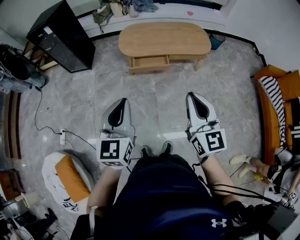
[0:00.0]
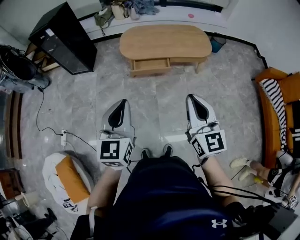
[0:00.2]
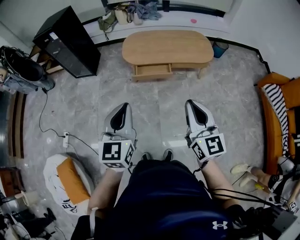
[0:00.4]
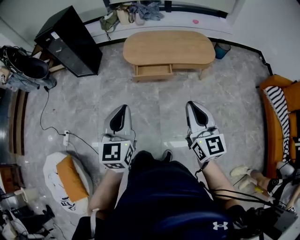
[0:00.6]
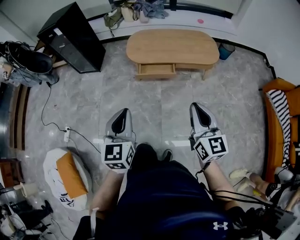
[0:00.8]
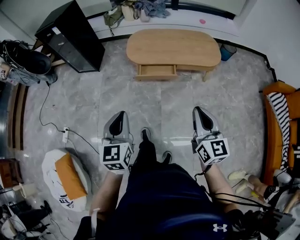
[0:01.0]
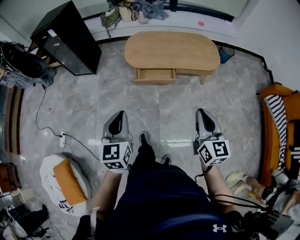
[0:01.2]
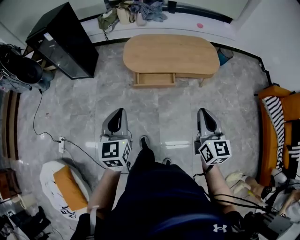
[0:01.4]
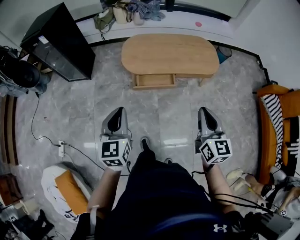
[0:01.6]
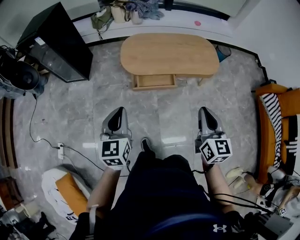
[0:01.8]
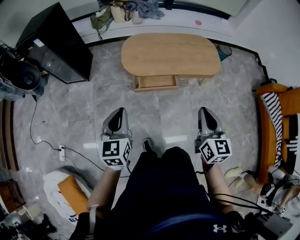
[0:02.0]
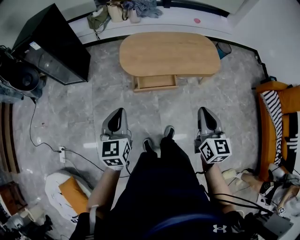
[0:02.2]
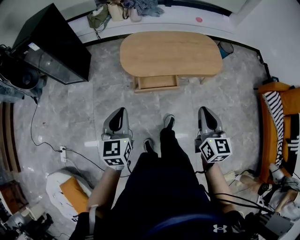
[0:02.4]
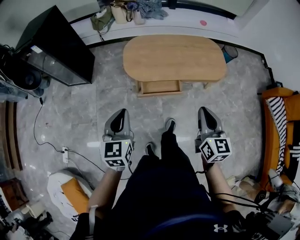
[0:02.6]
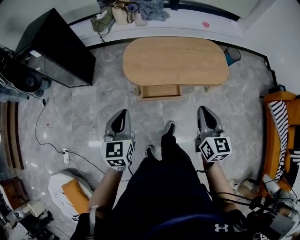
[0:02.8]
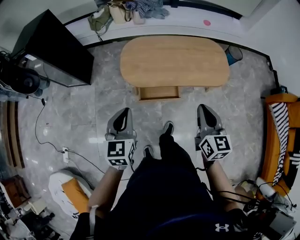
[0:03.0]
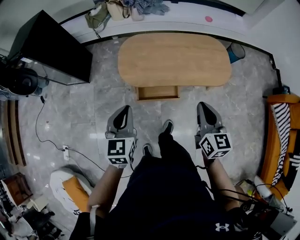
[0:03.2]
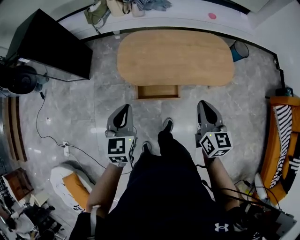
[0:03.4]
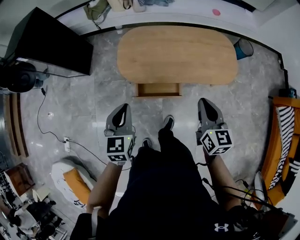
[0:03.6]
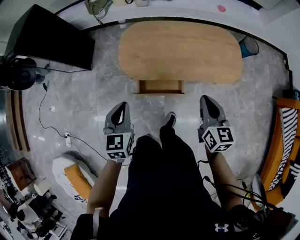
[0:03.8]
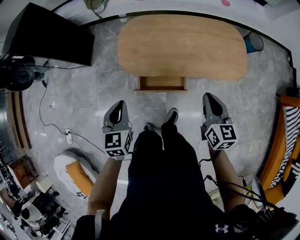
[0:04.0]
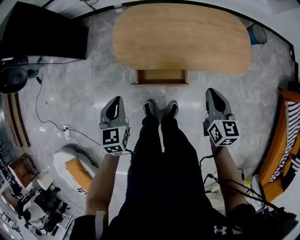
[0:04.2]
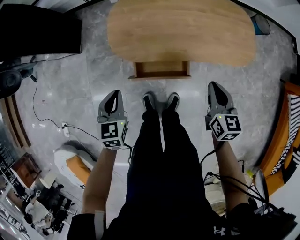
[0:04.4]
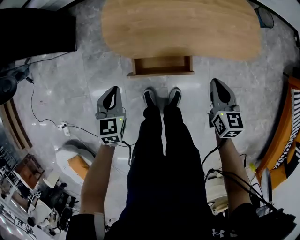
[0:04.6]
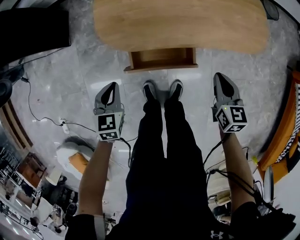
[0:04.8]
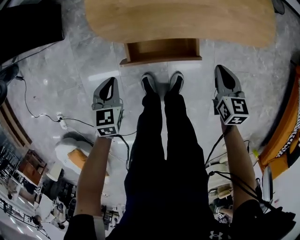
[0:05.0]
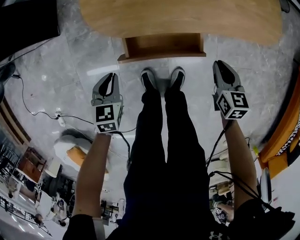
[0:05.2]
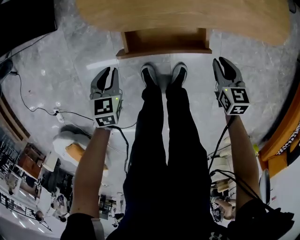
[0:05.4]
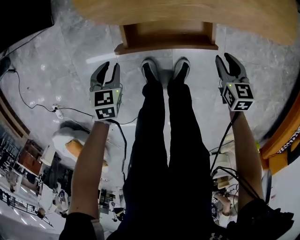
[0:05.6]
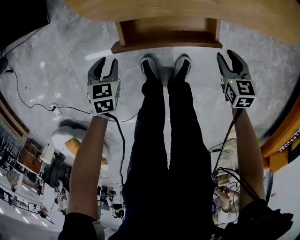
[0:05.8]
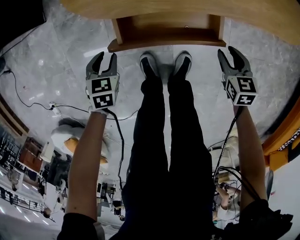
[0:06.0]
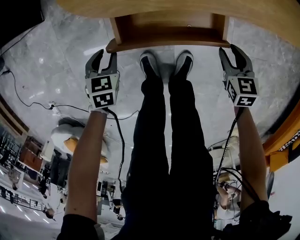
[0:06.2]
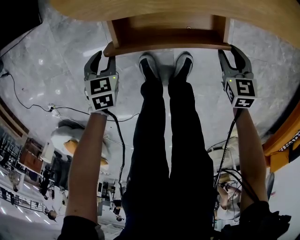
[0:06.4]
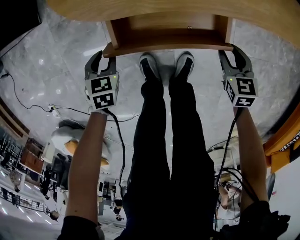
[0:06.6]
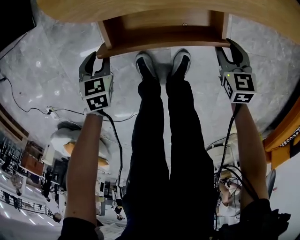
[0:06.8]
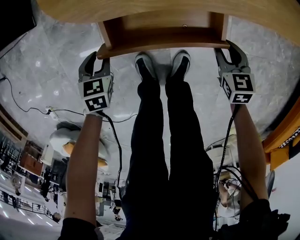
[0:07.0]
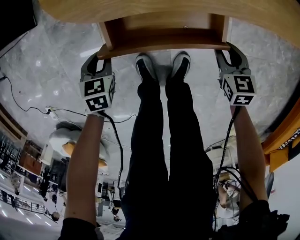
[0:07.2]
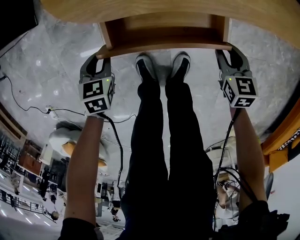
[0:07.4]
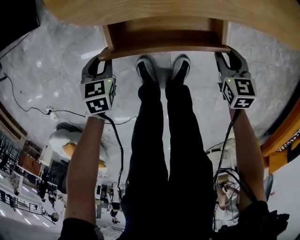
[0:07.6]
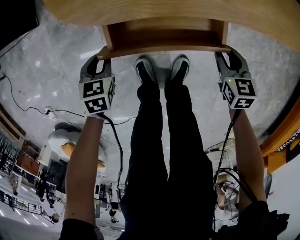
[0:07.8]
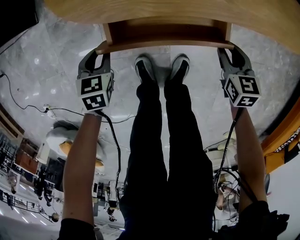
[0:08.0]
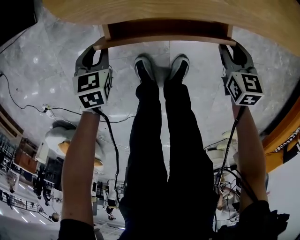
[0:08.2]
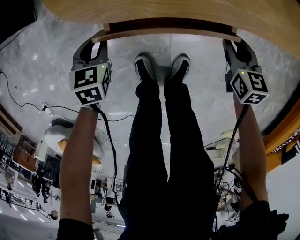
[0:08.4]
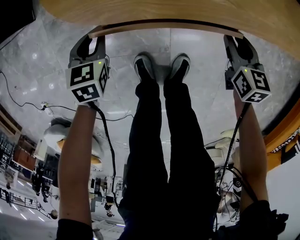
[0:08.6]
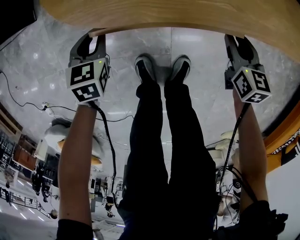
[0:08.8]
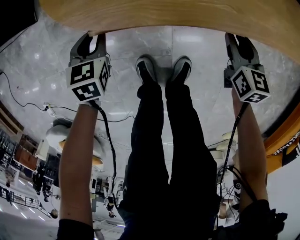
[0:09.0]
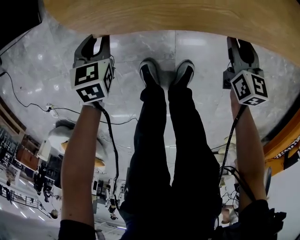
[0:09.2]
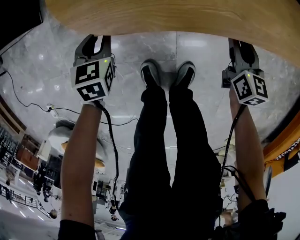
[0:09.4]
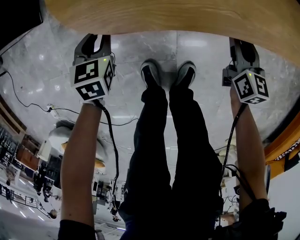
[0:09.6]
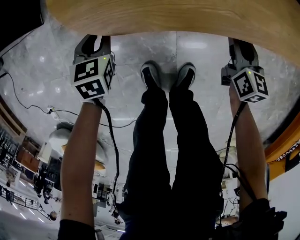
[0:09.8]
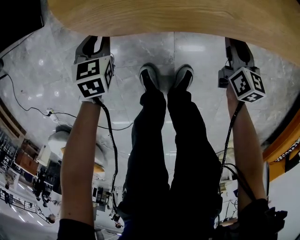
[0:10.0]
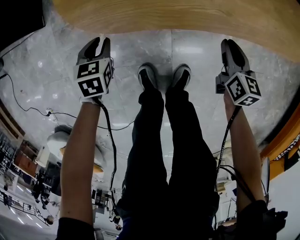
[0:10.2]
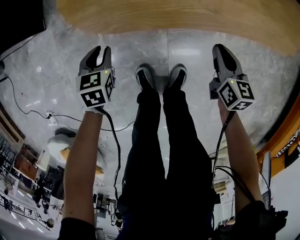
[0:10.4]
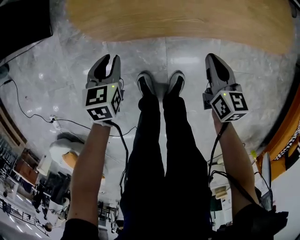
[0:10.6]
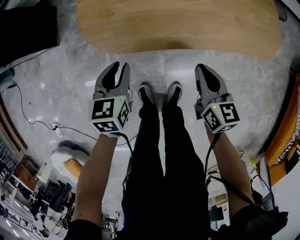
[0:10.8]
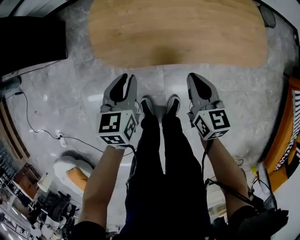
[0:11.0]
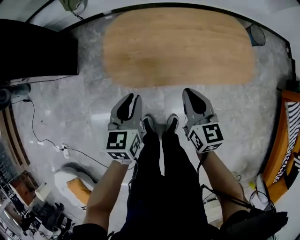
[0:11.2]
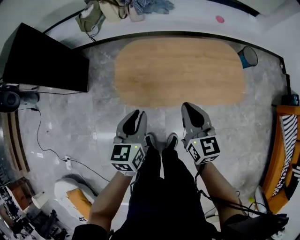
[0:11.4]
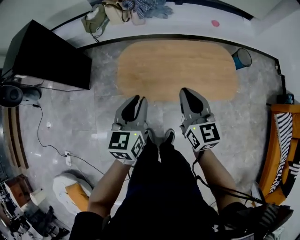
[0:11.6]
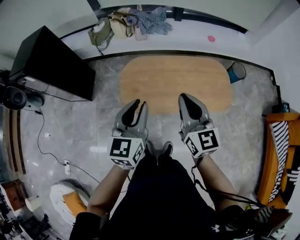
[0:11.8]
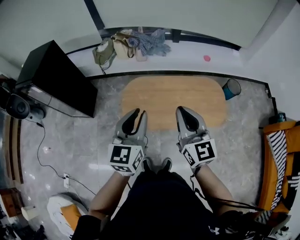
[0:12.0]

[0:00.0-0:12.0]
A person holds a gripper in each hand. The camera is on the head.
0:00.0 to 0:01.6: The two grippers go approximately 20 cm forward.
0:01.6 to 0:03.0: Both grippers move forward, roughly 20 cm.
0:03.0 to 0:04.4: The grippers both shift downward and forward by approximately 25 cm.
0:04.4 to 0:06.0: Both grippers move downward, some 35 cm. The left gripper changes its angle by some 30 degrees, and opens up; the right gripper swivels approximately 30 degrees, and opens up.
0:06.0 to 0:07.6: The grippers make only small movements.
0:07.6 to 0:09.0: Both grippers travel together forward, some 10 cm.
0:09.0 to 0:10.4: The left gripper shifts by approximately 5 cm. The right gripper shifts some 5 cm upward.
0:10.4 to 0:12.0: The two grippers go approximately 70 cm upward. The left gripper tilts its fingers about 50 degrees upward; the right gripper tilts its fingers roughly 40 degrees upward.

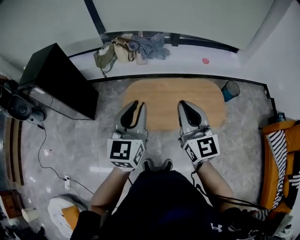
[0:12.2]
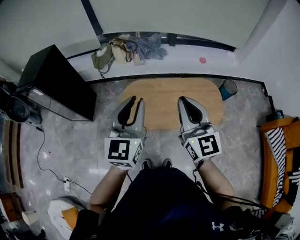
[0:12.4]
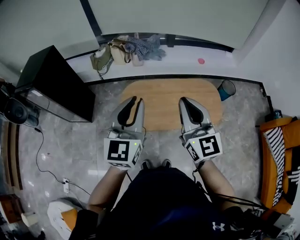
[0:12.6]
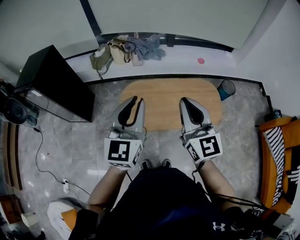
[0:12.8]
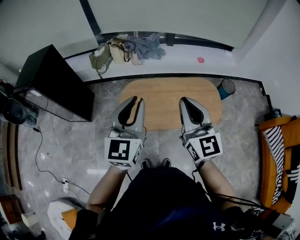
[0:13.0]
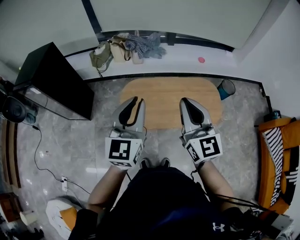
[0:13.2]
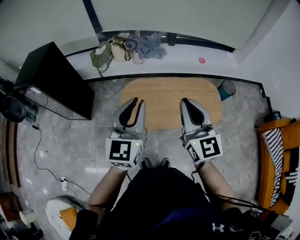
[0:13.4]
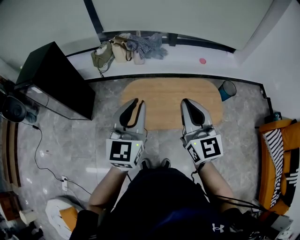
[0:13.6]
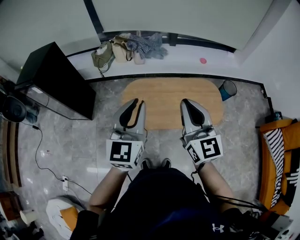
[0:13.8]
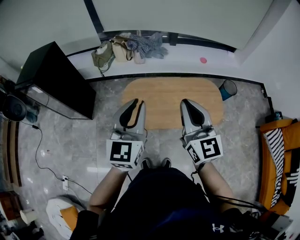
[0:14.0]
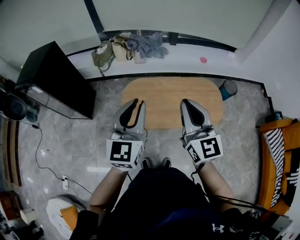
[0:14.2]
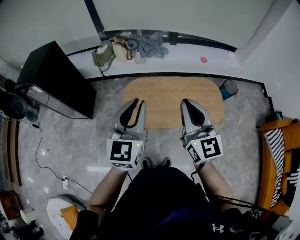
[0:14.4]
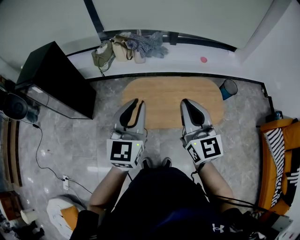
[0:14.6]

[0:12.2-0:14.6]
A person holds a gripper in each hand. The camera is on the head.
0:12.2 to 0:13.4: The grippers stay close to where they were, moving slightly.
0:13.4 to 0:14.6: Both grippers stay put.

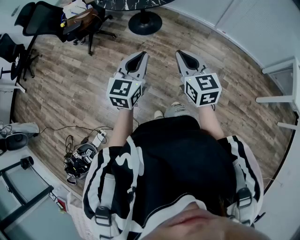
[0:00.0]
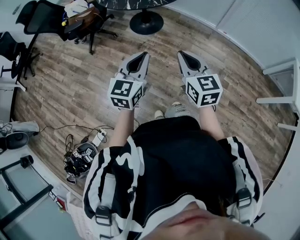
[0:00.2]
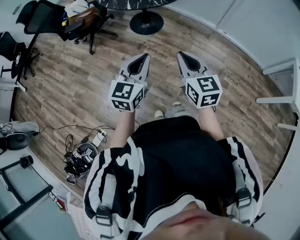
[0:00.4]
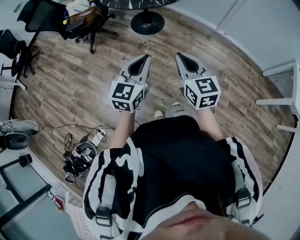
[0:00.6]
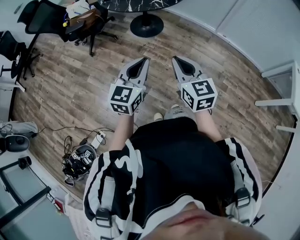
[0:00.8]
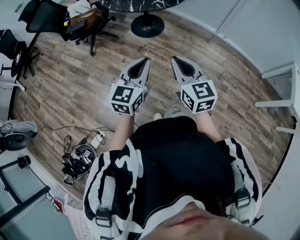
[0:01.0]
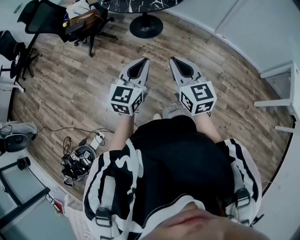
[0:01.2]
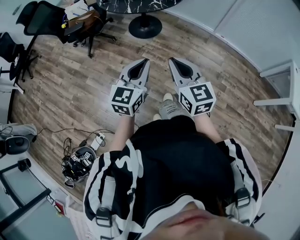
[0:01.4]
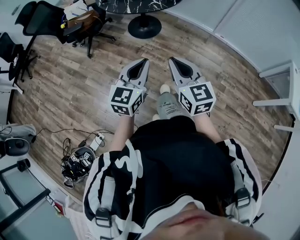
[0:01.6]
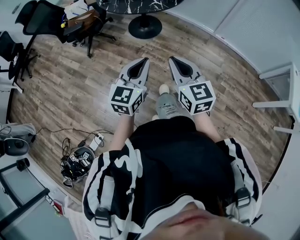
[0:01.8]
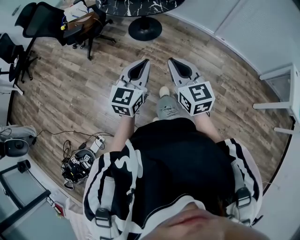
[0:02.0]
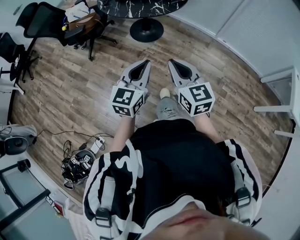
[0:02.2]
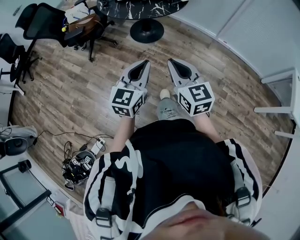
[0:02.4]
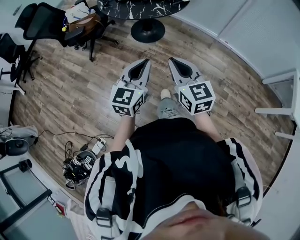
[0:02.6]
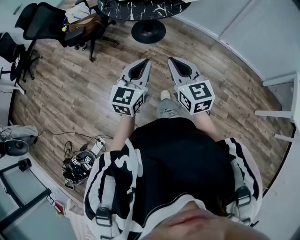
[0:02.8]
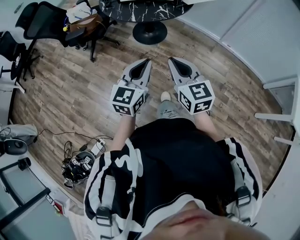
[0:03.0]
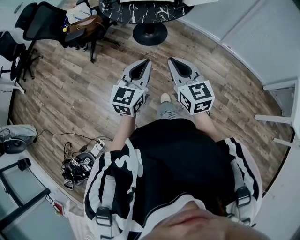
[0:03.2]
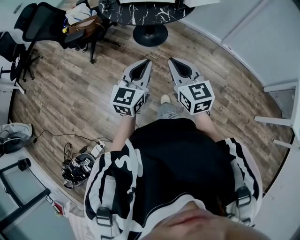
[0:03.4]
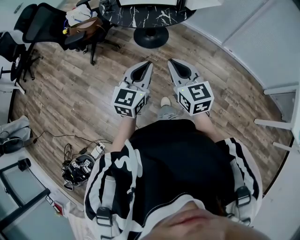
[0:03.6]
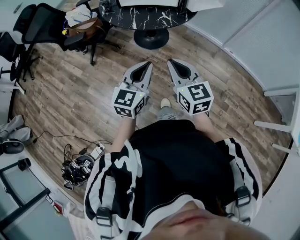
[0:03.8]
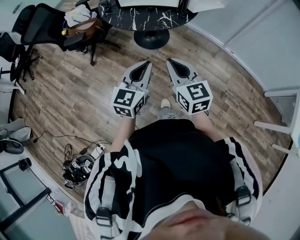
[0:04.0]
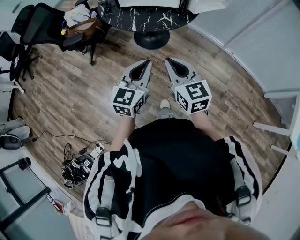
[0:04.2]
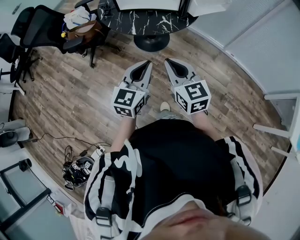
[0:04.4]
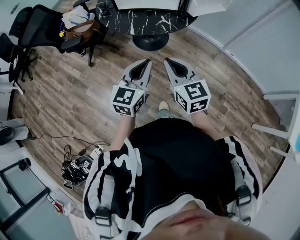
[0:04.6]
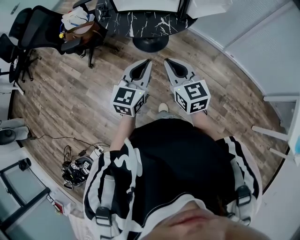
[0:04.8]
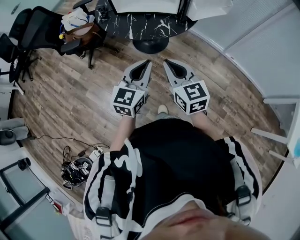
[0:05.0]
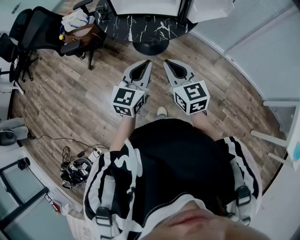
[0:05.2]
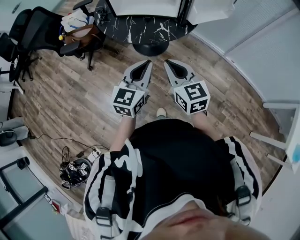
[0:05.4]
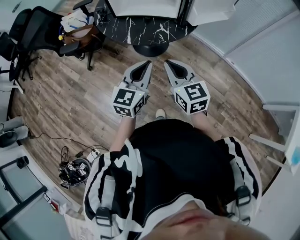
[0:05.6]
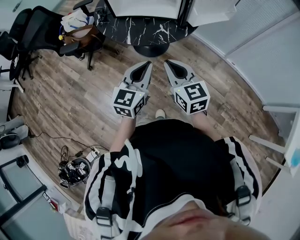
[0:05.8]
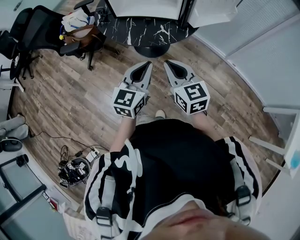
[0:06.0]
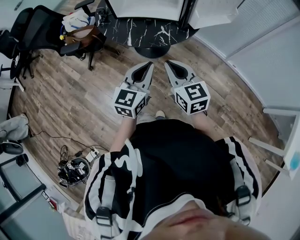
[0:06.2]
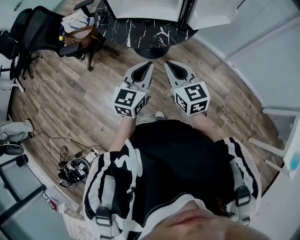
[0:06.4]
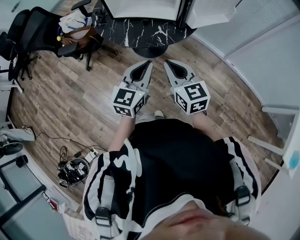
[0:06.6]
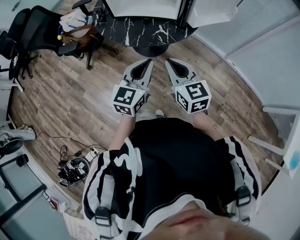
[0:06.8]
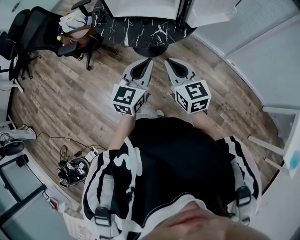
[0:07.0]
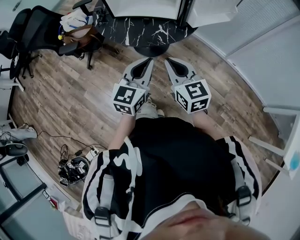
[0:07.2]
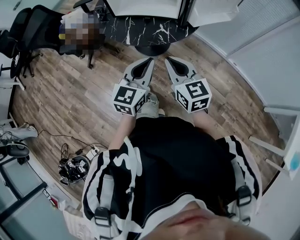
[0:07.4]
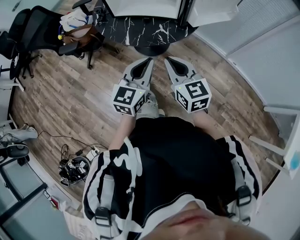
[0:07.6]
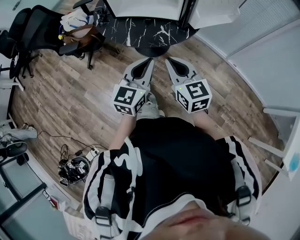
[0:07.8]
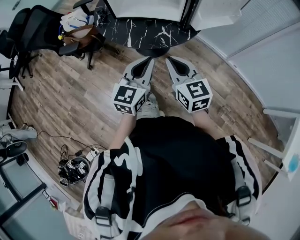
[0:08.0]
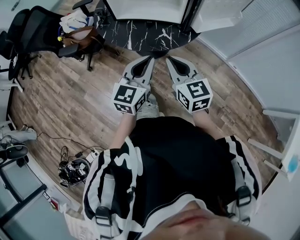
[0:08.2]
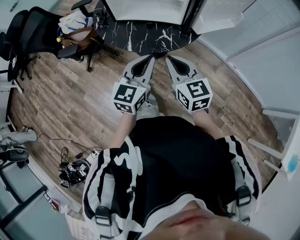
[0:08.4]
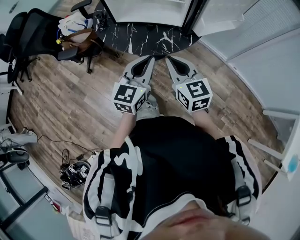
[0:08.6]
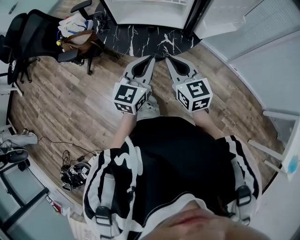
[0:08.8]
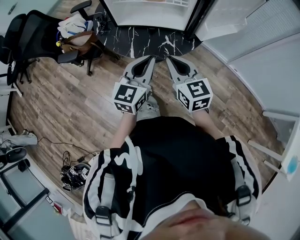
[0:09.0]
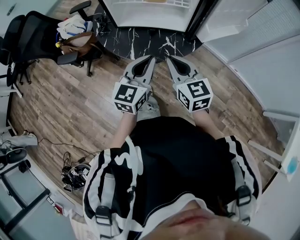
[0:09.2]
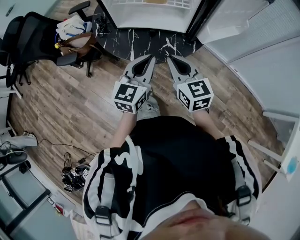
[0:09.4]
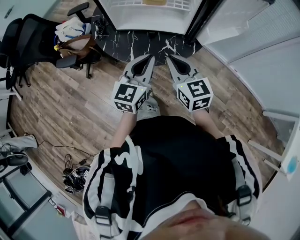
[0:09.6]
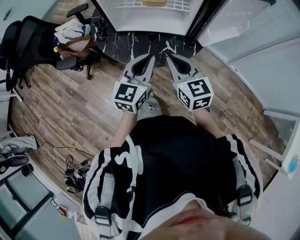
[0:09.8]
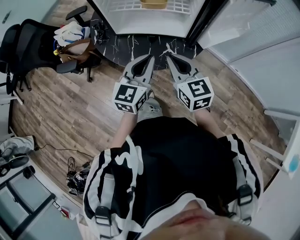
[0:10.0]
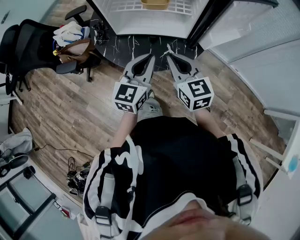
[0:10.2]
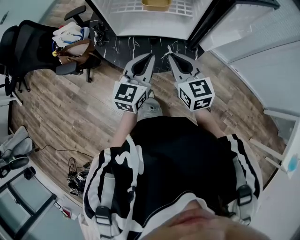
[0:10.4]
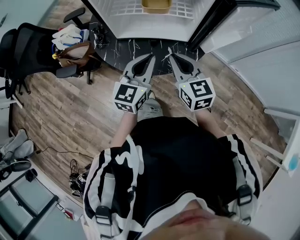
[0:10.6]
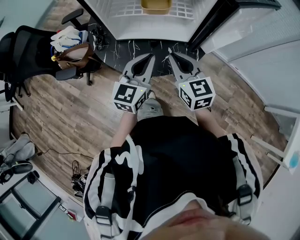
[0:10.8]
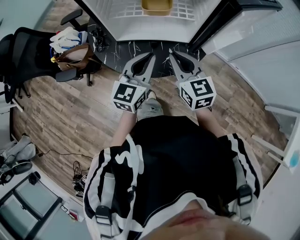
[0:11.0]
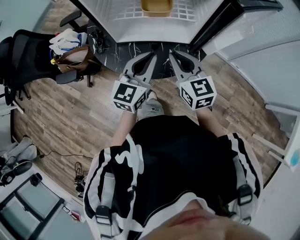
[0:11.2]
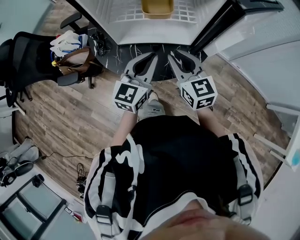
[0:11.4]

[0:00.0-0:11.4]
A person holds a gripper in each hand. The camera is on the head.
0:00.0 to 0:01.4: The right gripper moves some 5 cm.
0:01.4 to 0:02.8: Both grippers move forward, about 10 cm.
0:02.8 to 0:04.2: Both grippers travel together forward, approximately 15 cm.
0:04.2 to 0:05.6: The two grippers go roughly 10 cm forward.
0:05.6 to 0:07.2: The grippers make only small movements.
0:07.2 to 0:08.6: The grippers both shift forward by approximately 10 cm.
0:08.6 to 0:10.0: The two grippers go approximately 10 cm forward.
0:10.0 to 0:11.4: Both grippers move forward, about 10 cm.
